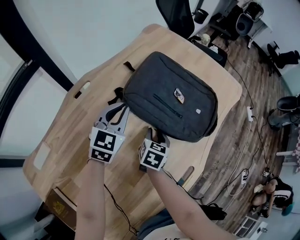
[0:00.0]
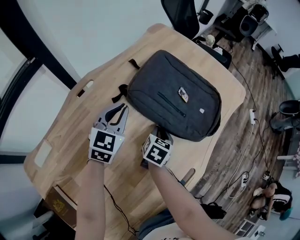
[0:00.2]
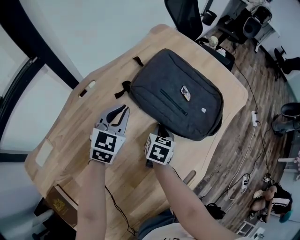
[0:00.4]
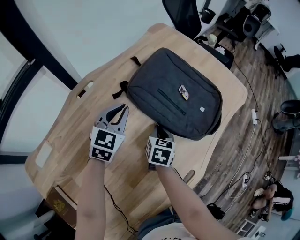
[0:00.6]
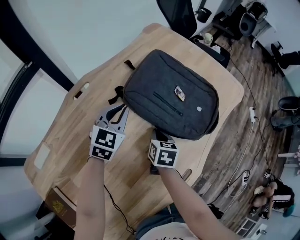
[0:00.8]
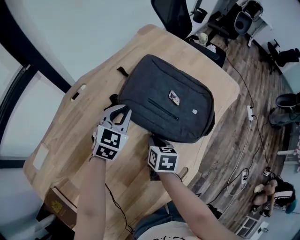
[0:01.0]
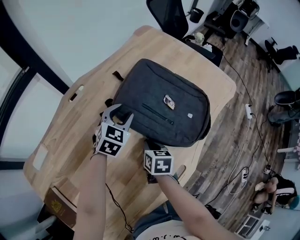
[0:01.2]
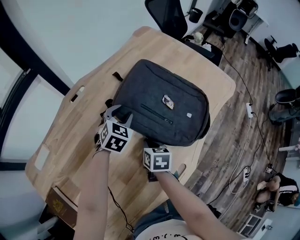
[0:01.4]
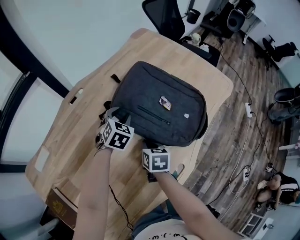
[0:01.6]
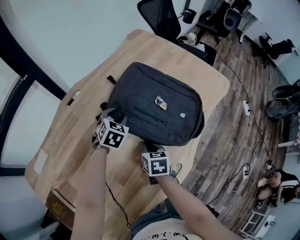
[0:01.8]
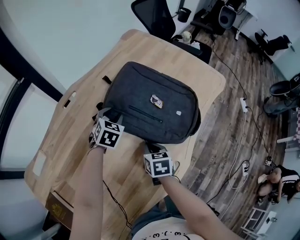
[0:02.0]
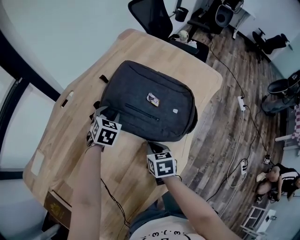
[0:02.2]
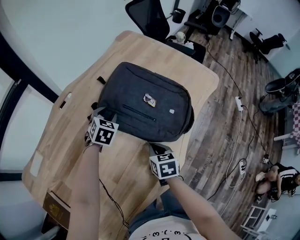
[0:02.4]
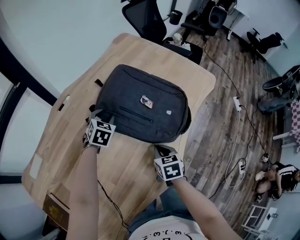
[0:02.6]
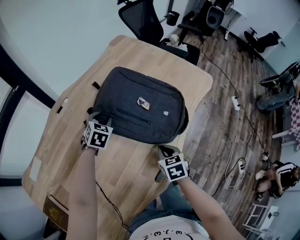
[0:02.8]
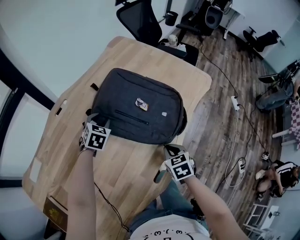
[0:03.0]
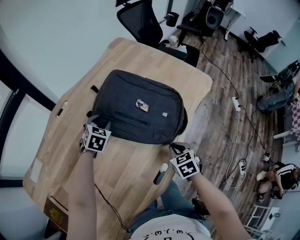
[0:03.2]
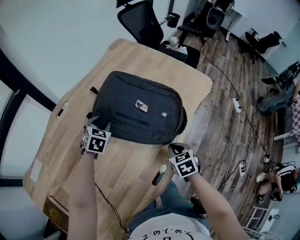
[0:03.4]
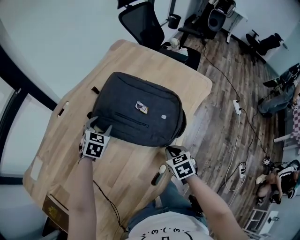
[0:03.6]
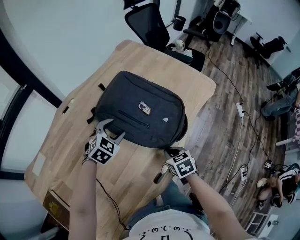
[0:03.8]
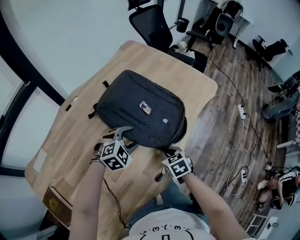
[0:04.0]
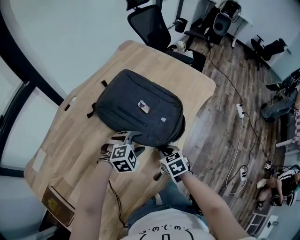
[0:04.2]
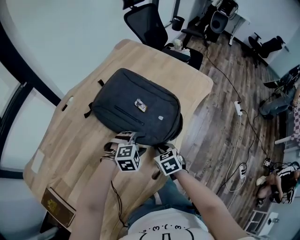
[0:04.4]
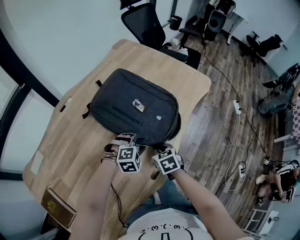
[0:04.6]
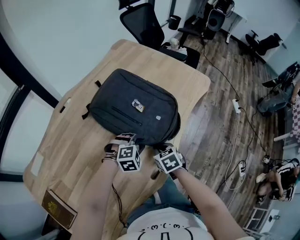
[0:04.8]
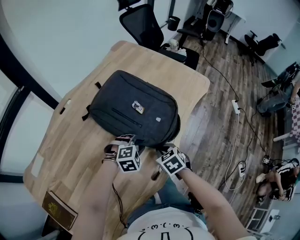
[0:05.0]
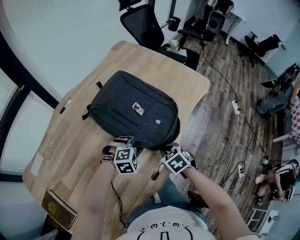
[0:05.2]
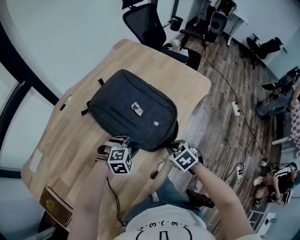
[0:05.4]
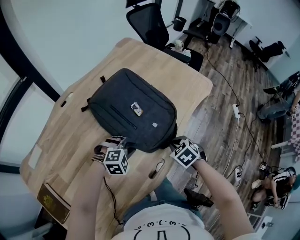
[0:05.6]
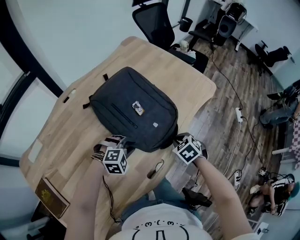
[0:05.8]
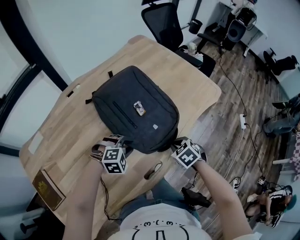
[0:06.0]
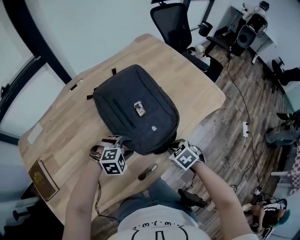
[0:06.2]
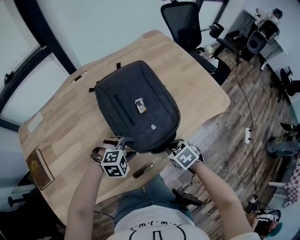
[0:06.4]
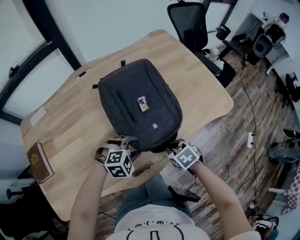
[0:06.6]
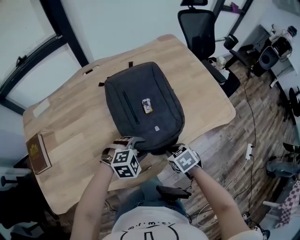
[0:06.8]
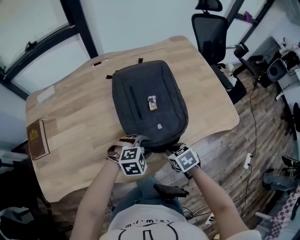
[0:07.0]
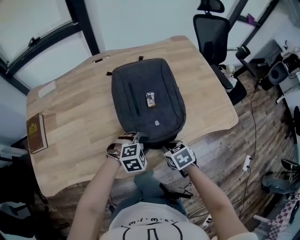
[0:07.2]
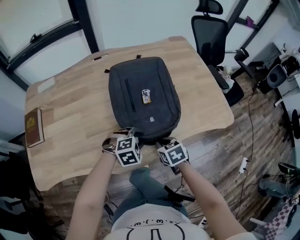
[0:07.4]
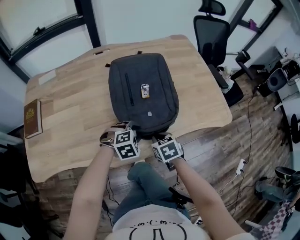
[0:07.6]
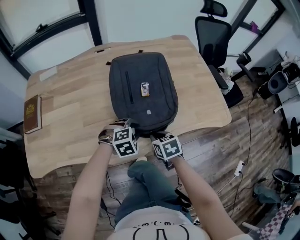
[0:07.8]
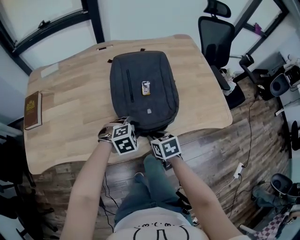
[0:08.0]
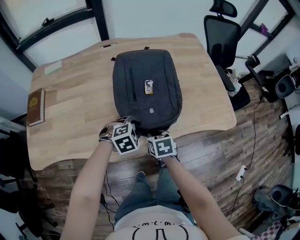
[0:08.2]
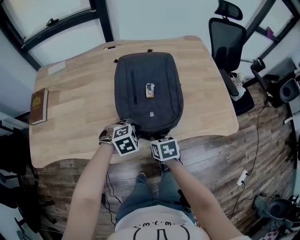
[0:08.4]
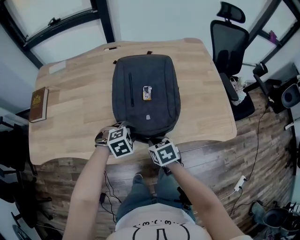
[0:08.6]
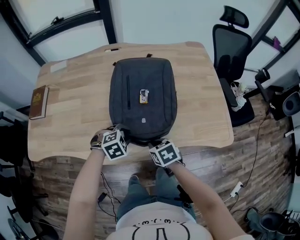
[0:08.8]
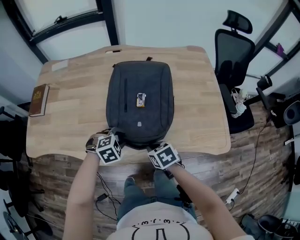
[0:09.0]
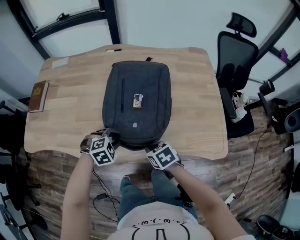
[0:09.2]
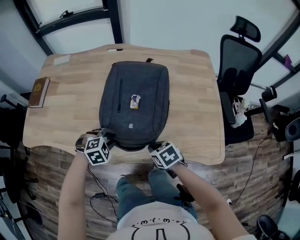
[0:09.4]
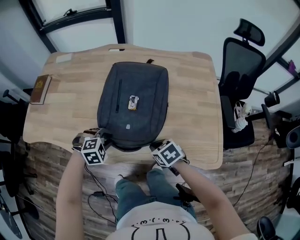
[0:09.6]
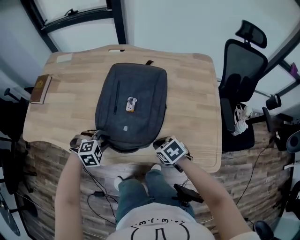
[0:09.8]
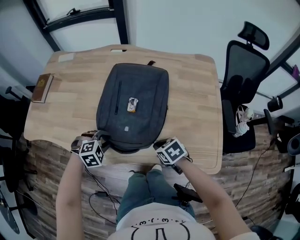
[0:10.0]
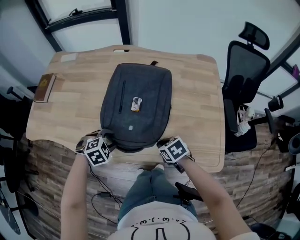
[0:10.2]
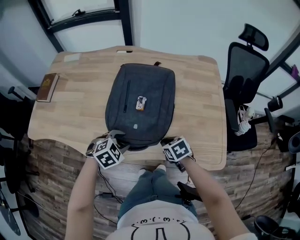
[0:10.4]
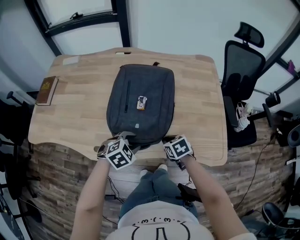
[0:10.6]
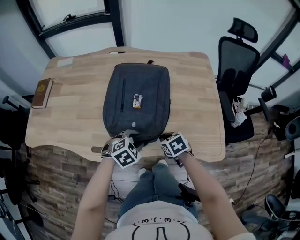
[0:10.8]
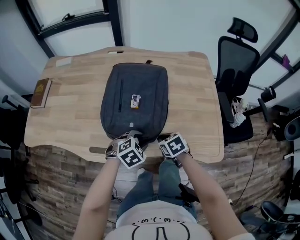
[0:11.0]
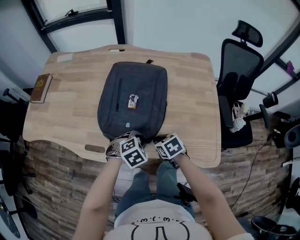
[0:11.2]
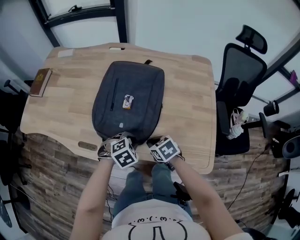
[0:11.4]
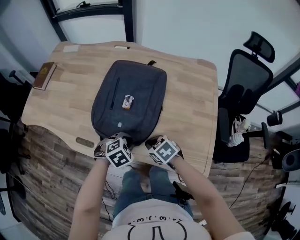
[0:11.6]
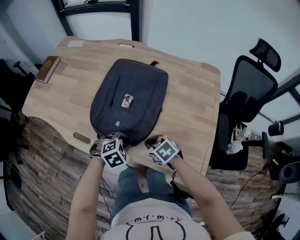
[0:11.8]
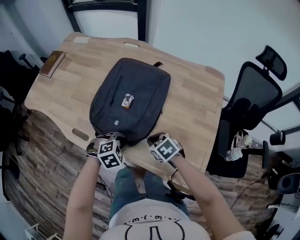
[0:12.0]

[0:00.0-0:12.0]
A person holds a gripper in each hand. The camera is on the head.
0:00.0 to 0:01.6: The left gripper goes roughly 10 cm downward, swivels approximately 30 degrees, and opens its fingers; the right gripper heads backward, covering roughly 5 cm, swivels about 30 degrees, and closes its fingers.
0:01.6 to 0:03.0: The right gripper moves to the right, roughly 15 cm, and changes its angle by approximately 20 degrees.
0:03.0 to 0:04.4: The left gripper goes approximately 25 cm to the right and backward, and twists some 50 degrees clockwise, seen from behind.
0:04.4 to 0:06.0: The right gripper heads to the right, covering about 10 cm, and rotates about 30 degrees, while the left gripper closes up.
0:06.0 to 0:07.6: The left gripper ends up approximately 10 cm from where it was, and changes its angle by some 40 degrees.
0:07.6 to 0:09.0: The left gripper rotates about 20 degrees. Meanwhile the right gripper swivels roughly 20 degrees.
0:09.0 to 0:10.4: The right gripper is displaced to the right by some 10 cm. Meanwhile the left gripper ends up some 5 cm from where it was.
0:10.4 to 0:12.0: The right gripper changes place by approximately 5 cm, and rotates some 30 degrees. Meanwhile the left gripper moves some 10 cm, and closes its fingers.

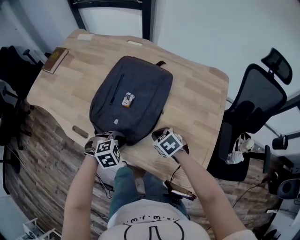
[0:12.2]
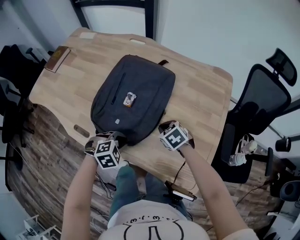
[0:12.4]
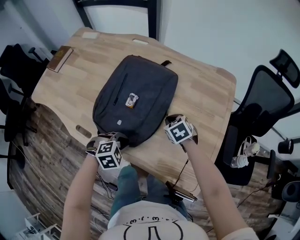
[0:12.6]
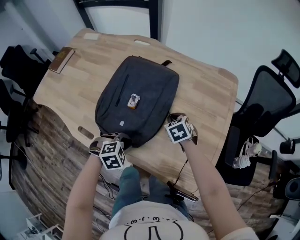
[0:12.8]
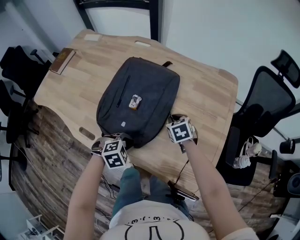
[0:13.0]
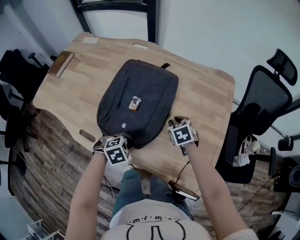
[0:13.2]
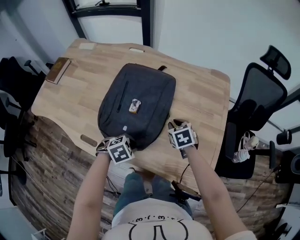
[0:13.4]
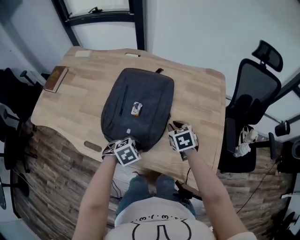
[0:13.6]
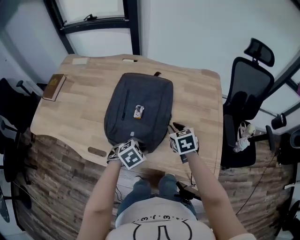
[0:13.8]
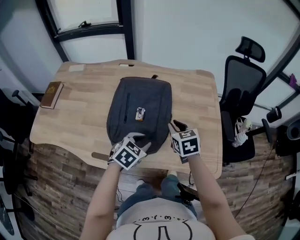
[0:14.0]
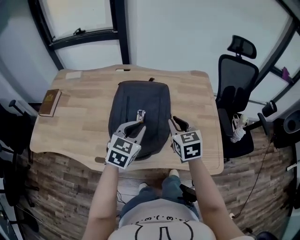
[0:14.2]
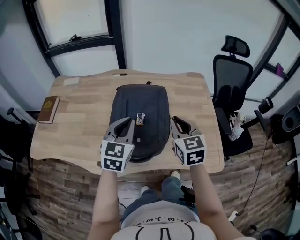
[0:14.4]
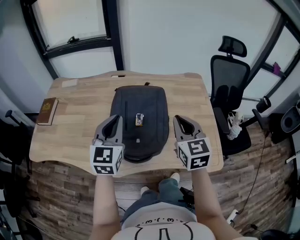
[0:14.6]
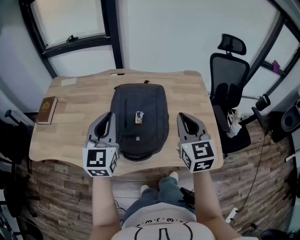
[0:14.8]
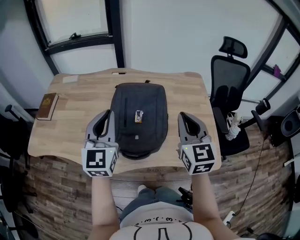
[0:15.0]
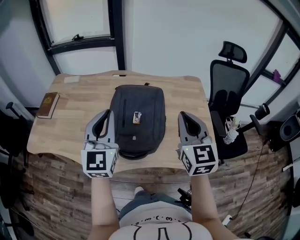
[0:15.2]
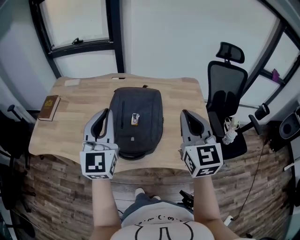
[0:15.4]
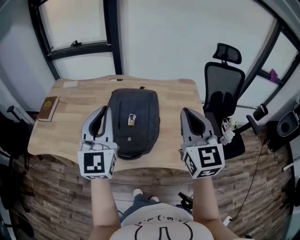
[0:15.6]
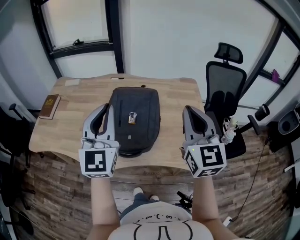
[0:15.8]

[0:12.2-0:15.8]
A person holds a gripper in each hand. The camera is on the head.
0:12.2 to 0:14.0: The right gripper goes about 15 cm upward, and changes its angle by approximately 50 degrees, while the left gripper goes about 10 cm upward, and changes its angle by approximately 30 degrees.
0:14.0 to 0:15.8: The left gripper moves upward, approximately 30 cm, angles its fingers upward, by roughly 60 degrees, and closes. Meanwhile the right gripper moves upward and backward, roughly 30 cm, and points its fingers about 40 degrees further upward.

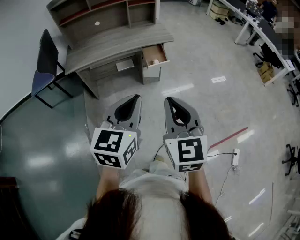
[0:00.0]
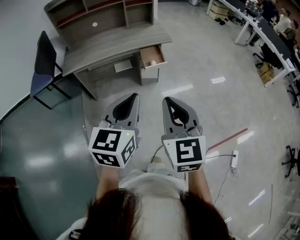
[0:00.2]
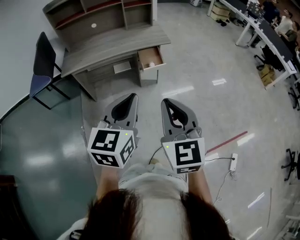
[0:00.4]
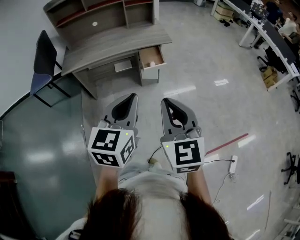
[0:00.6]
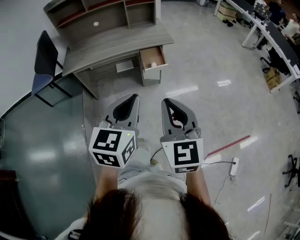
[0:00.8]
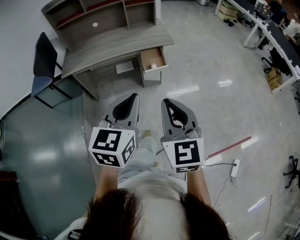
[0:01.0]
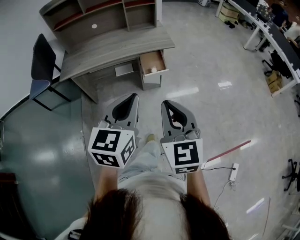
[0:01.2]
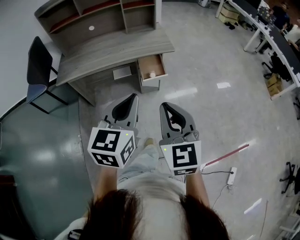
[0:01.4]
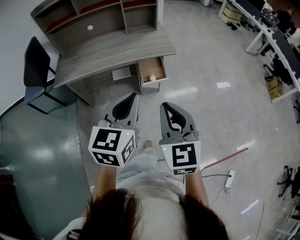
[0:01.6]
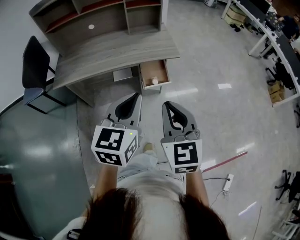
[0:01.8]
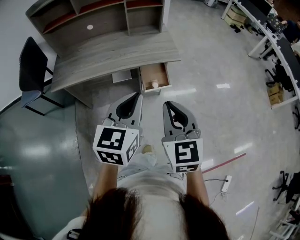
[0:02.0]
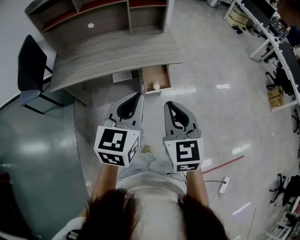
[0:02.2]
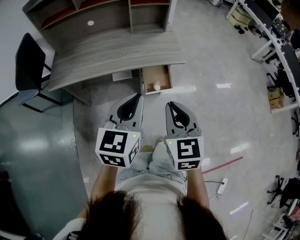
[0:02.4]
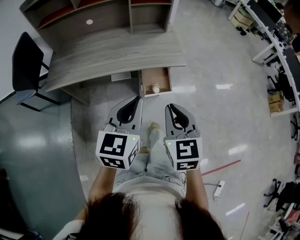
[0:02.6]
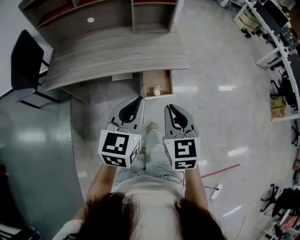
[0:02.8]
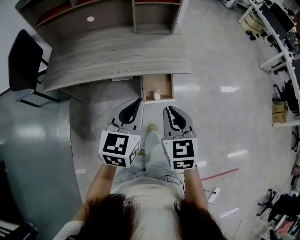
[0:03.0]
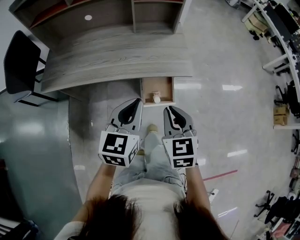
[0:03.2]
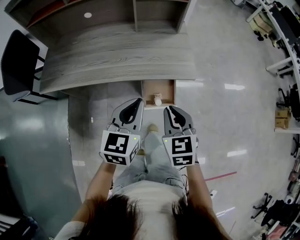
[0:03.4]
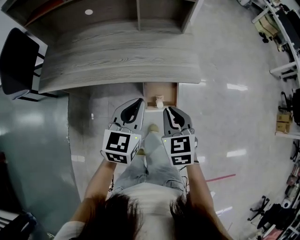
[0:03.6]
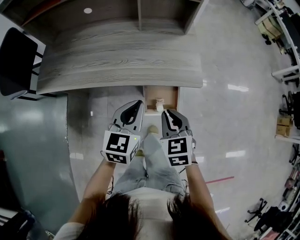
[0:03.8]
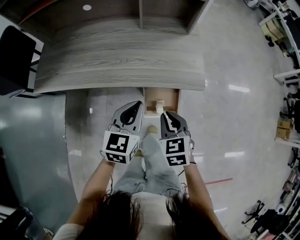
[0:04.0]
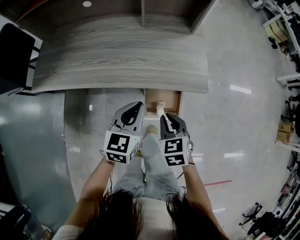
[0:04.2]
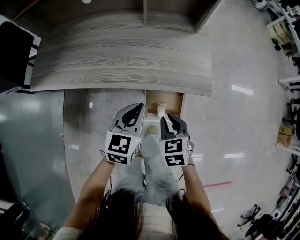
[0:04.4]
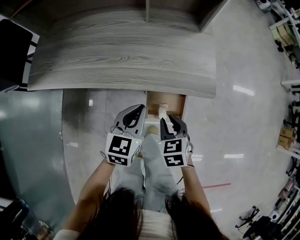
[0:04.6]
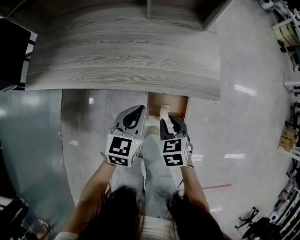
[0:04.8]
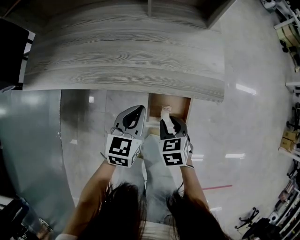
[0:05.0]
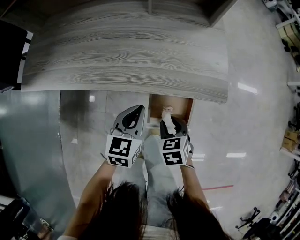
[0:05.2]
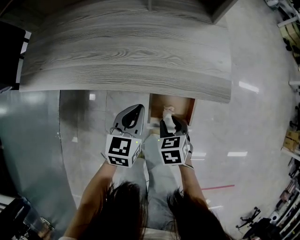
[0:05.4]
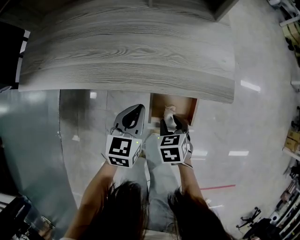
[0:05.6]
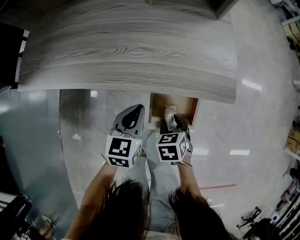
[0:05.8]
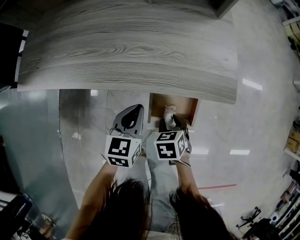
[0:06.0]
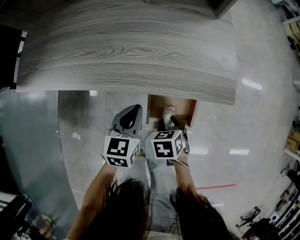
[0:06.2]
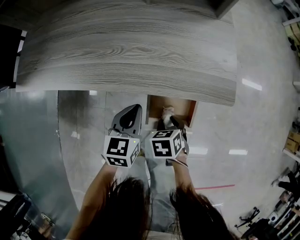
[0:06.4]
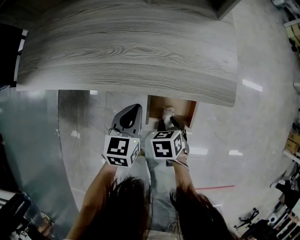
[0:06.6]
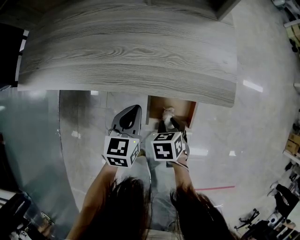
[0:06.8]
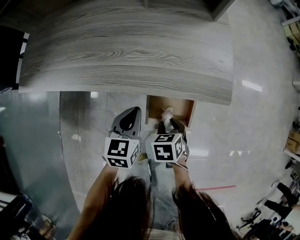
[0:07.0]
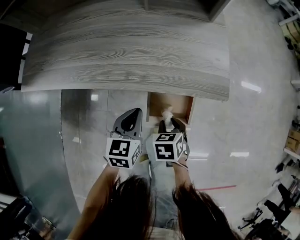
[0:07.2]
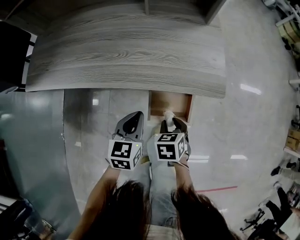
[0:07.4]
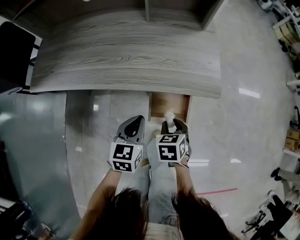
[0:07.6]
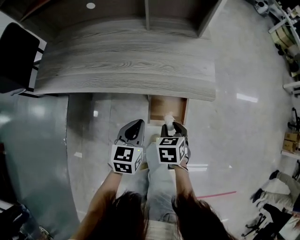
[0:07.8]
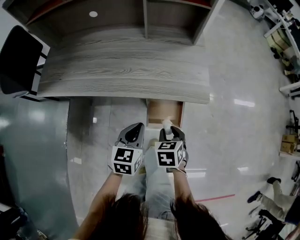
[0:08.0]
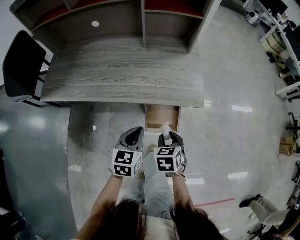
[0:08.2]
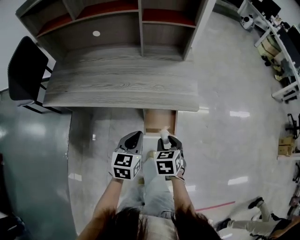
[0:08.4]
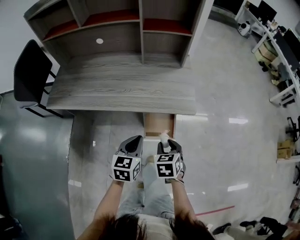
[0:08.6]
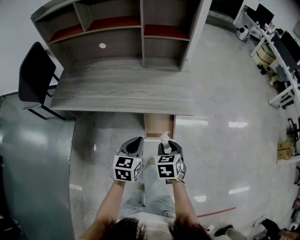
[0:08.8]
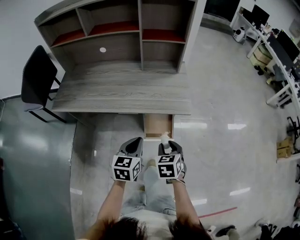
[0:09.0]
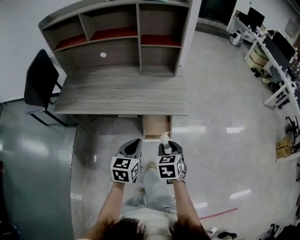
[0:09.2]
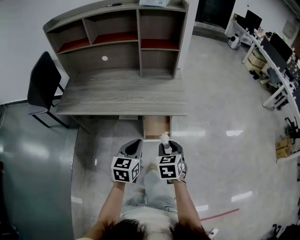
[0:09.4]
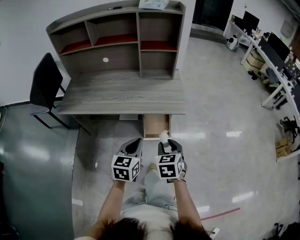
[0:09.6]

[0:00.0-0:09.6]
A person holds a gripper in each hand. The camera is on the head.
0:00.0 to 0:01.6: The two grippers go about 25 cm forward.
0:01.6 to 0:03.2: Both grippers travel together forward and downward, roughly 30 cm.
0:03.2 to 0:04.8: The grippers both shift downward and forward by about 25 cm. The right gripper rotates approximately 30 degrees.
0:04.8 to 0:06.4: The grippers both shift downward by some 10 cm.
0:06.4 to 0:08.0: The right gripper shifts some 15 cm upward; the left gripper travels upward and backward by about 15 cm.
0:08.0 to 0:09.6: The two grippers go roughly 25 cm upward and backward.
